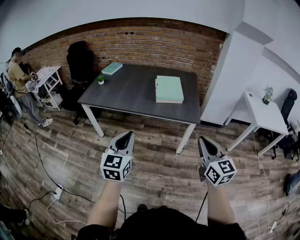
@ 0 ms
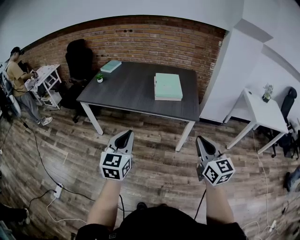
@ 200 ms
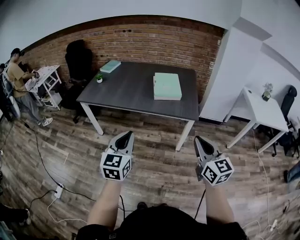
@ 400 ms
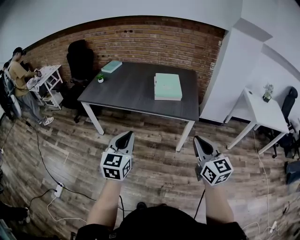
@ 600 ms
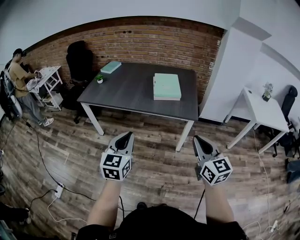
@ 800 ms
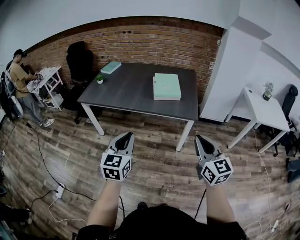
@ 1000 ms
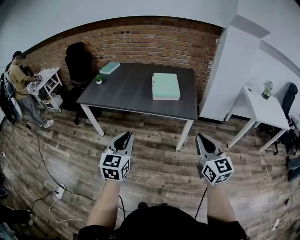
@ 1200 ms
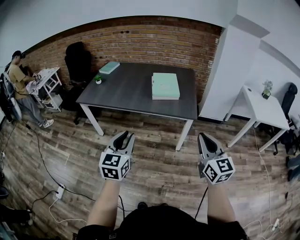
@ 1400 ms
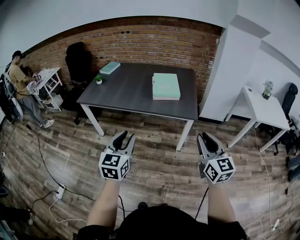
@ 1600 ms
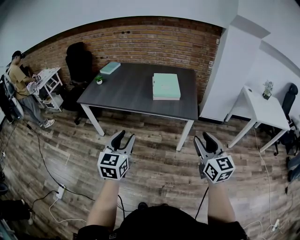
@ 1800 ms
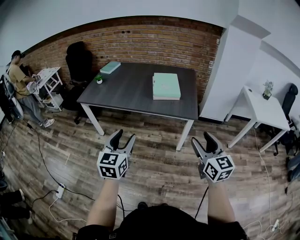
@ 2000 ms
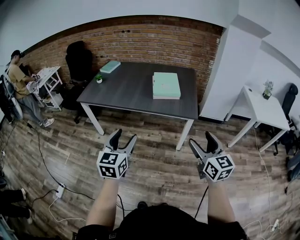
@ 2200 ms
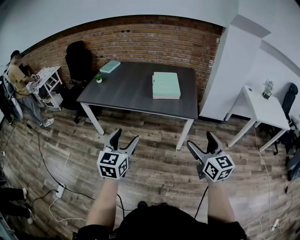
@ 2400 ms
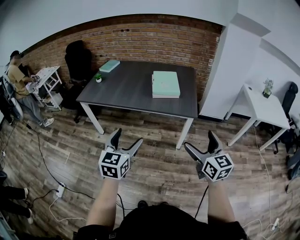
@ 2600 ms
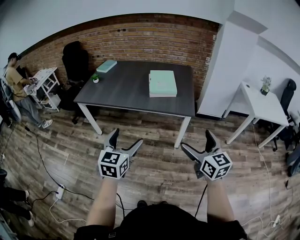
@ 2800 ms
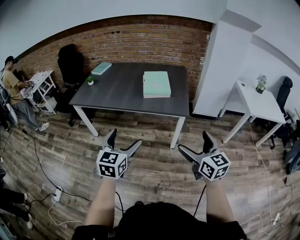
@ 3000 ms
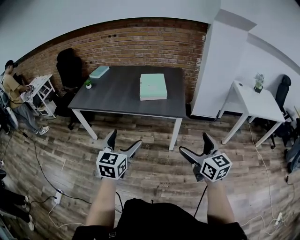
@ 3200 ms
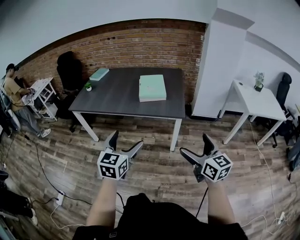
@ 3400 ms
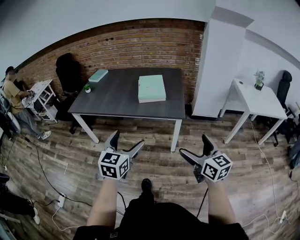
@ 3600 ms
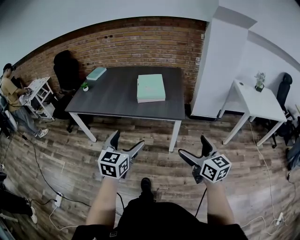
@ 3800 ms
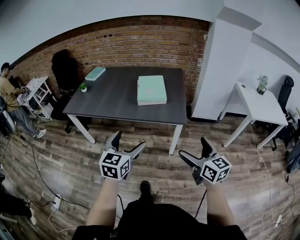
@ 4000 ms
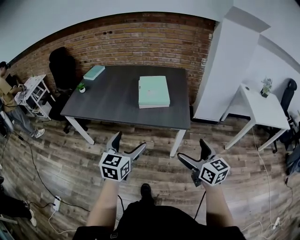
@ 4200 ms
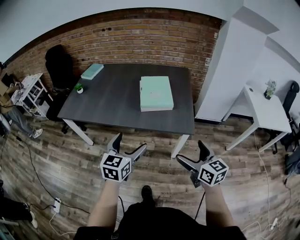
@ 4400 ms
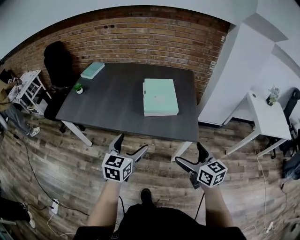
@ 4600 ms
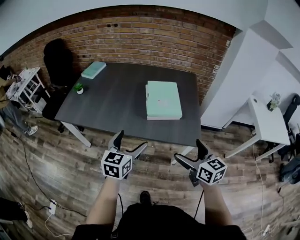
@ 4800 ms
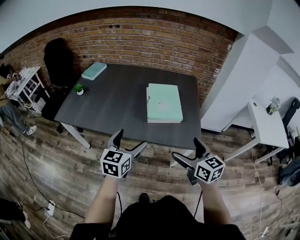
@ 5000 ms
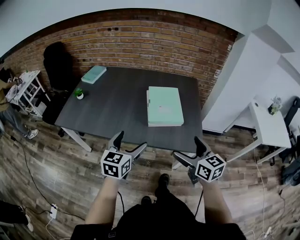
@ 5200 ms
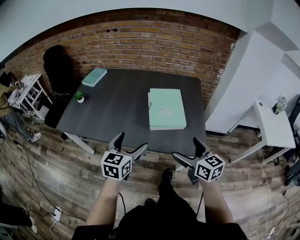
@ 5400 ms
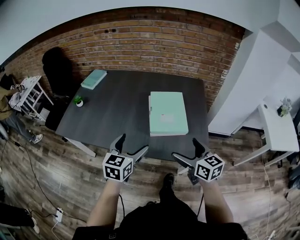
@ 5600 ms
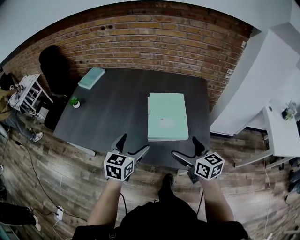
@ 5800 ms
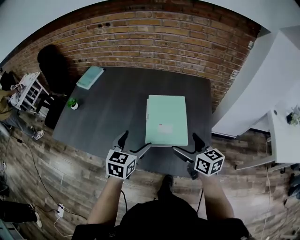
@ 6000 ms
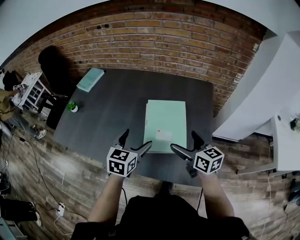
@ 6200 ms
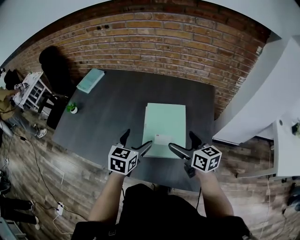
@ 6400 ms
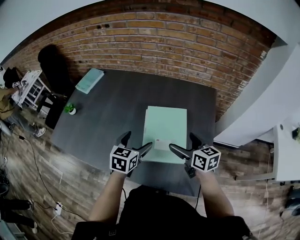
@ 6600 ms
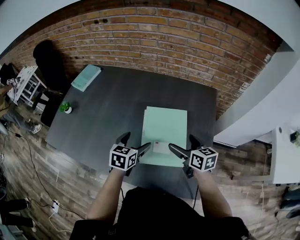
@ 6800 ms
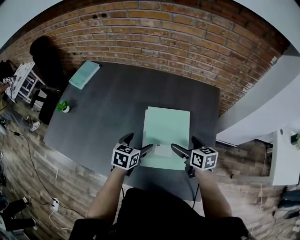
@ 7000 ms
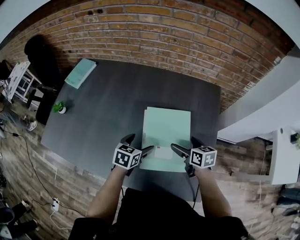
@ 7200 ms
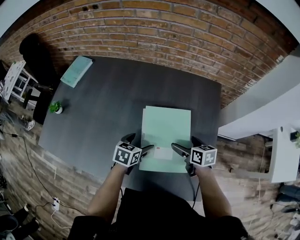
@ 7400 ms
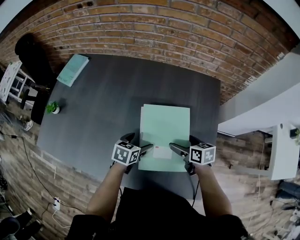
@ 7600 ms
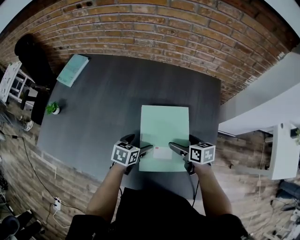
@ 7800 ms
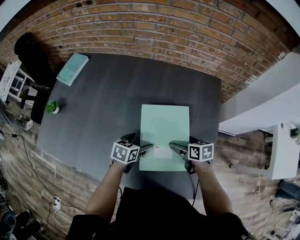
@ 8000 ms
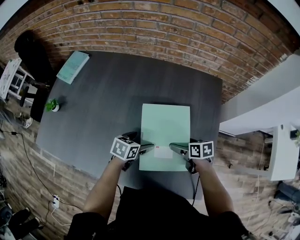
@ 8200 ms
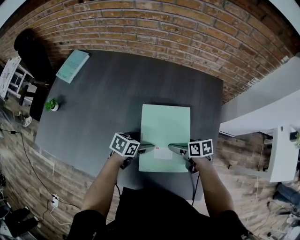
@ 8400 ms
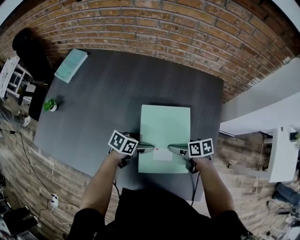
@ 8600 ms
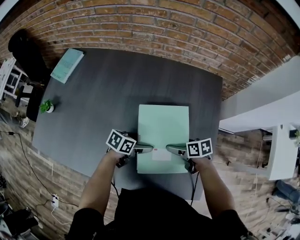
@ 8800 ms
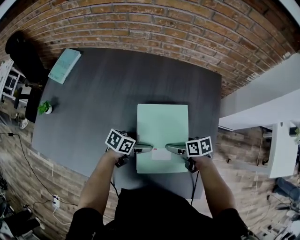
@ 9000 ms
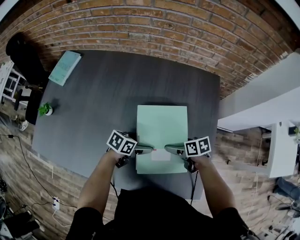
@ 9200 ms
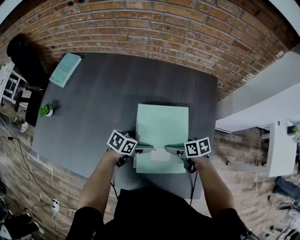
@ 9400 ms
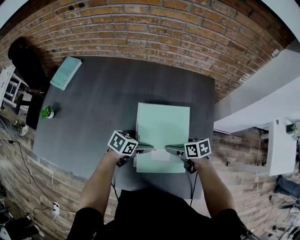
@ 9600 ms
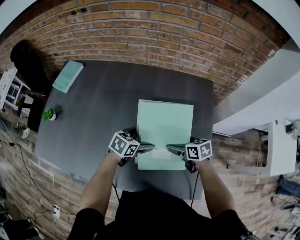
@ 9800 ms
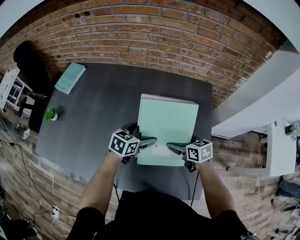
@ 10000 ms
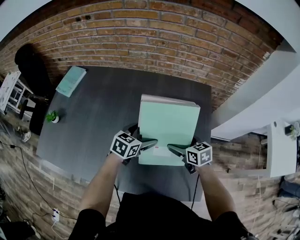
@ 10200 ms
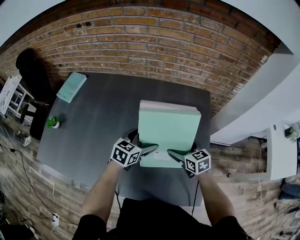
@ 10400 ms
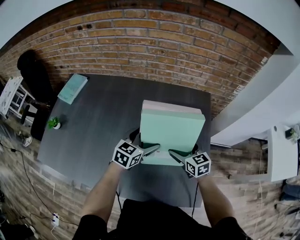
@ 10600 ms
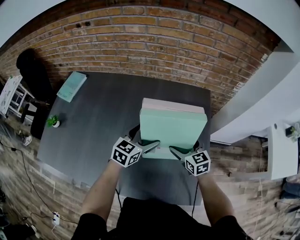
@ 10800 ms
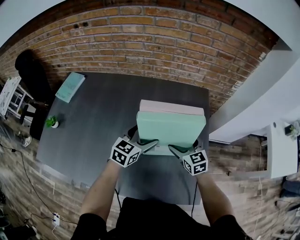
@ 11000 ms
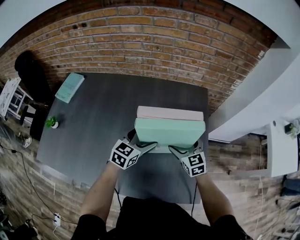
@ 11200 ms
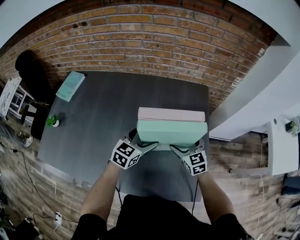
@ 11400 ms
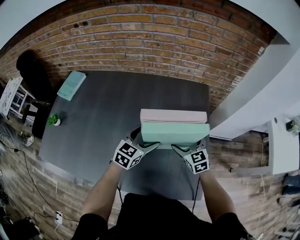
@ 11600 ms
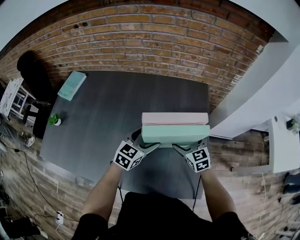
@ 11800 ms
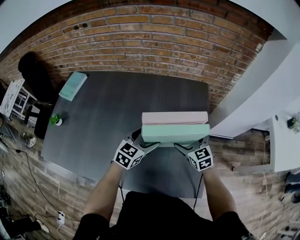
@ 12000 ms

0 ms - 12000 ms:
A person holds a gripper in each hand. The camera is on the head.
0 ms - 1600 ms: The grippers stay close to where they were, moving slightly.
1600 ms - 3000 ms: The right gripper opens up. The left gripper opens up.
3000 ms - 4400 ms: The left gripper heads forward, covering approximately 20 cm. Meanwhile the right gripper moves forward and downward, about 20 cm.
4400 ms - 6000 ms: Both grippers travel together forward, roughly 35 cm.
6000 ms - 7600 ms: The grippers both shift downward and forward by approximately 25 cm. The right gripper swivels about 30 degrees. Meanwhile the left gripper changes its angle by some 30 degrees.
7600 ms - 9000 ms: The left gripper rotates approximately 30 degrees, while the right gripper travels downward by about 5 cm.
9000 ms - 10400 ms: The two grippers go roughly 10 cm upward. The left gripper swivels some 40 degrees, while the right gripper rotates some 40 degrees.
10400 ms - 12000 ms: The left gripper ends up approximately 5 cm from where it was.

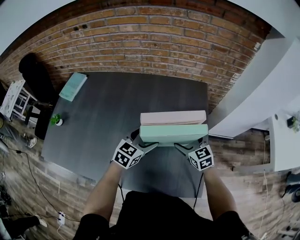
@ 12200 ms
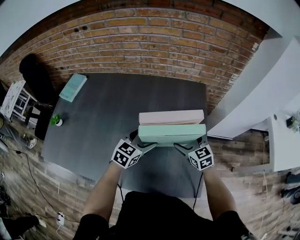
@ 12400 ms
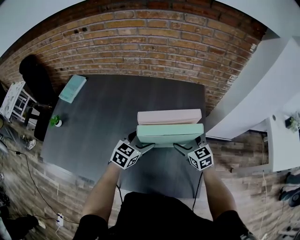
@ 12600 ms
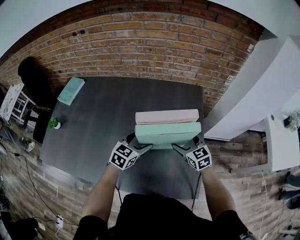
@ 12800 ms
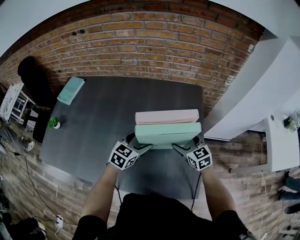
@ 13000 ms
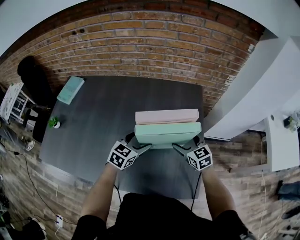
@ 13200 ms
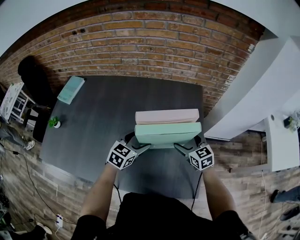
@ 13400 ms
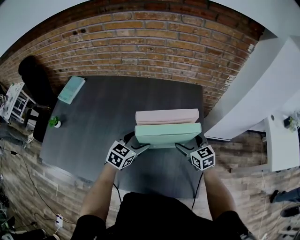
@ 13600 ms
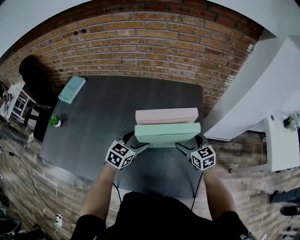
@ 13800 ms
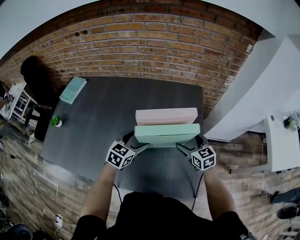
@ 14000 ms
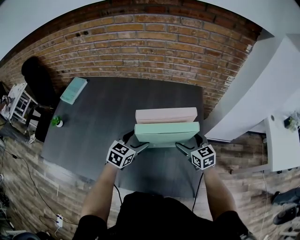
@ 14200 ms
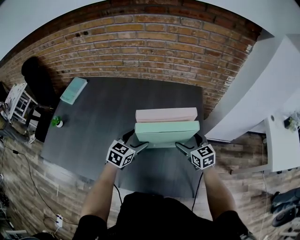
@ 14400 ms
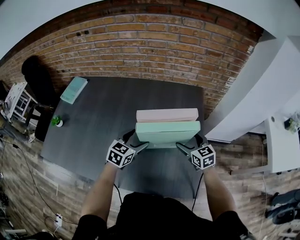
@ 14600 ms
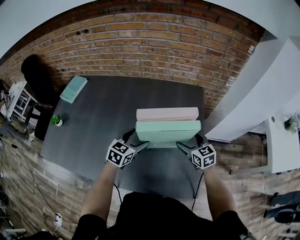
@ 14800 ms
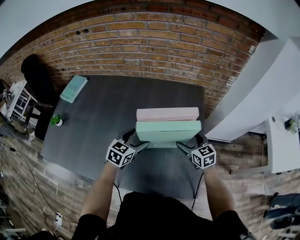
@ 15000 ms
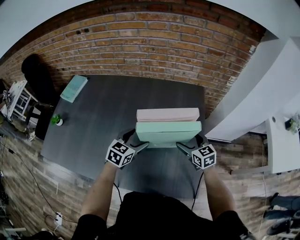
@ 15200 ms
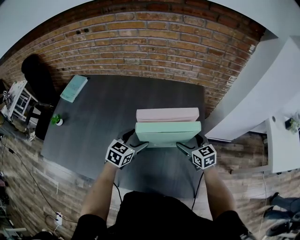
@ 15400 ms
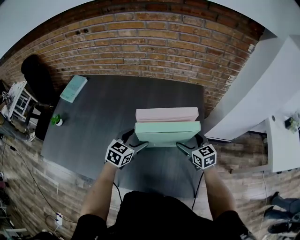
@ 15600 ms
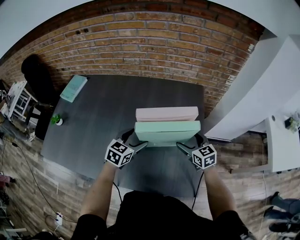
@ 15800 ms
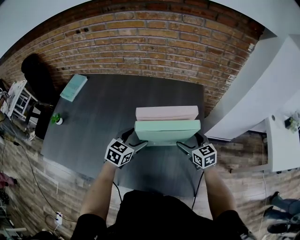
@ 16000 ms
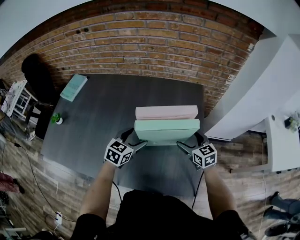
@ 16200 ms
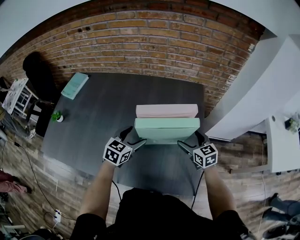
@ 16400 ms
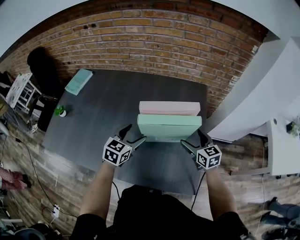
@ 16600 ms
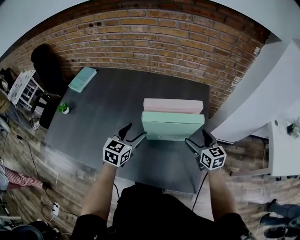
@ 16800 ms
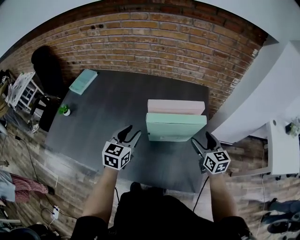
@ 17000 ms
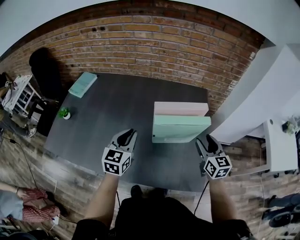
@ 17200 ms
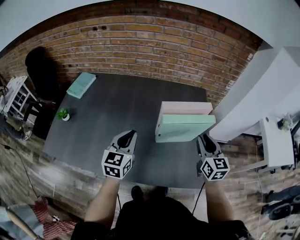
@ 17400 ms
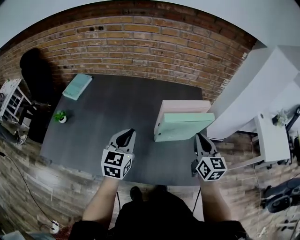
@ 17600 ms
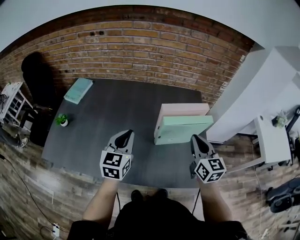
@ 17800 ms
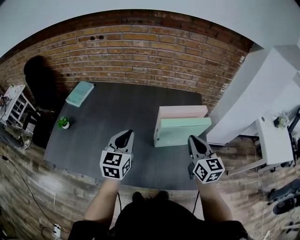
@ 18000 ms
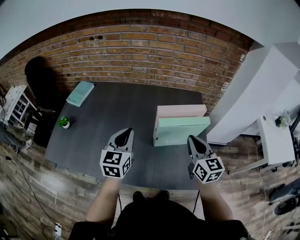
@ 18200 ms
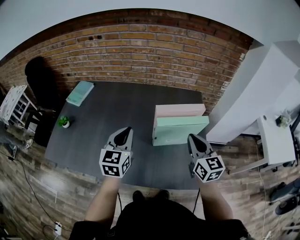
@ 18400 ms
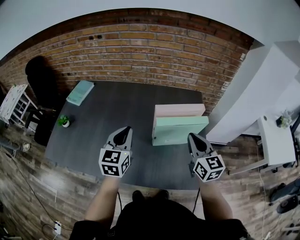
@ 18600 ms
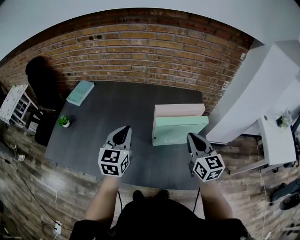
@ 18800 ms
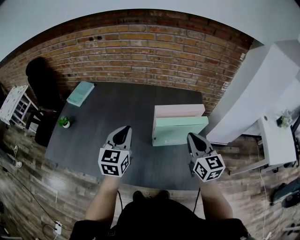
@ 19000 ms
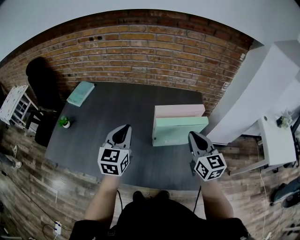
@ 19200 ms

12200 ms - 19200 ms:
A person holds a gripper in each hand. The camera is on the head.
12200 ms - 13600 ms: The grippers make only small movements.
13600 ms - 15000 ms: Neither gripper changes place.
15000 ms - 16400 ms: The grippers stay close to where they were, moving slightly.
16400 ms - 17800 ms: The right gripper heads upward, backward and to the left, covering roughly 20 cm, changes its angle by approximately 30 degrees, and closes. The left gripper moves upward, to the left and backward, roughly 20 cm, rotates some 20 degrees, and closes its fingers.
17800 ms - 19200 ms: There are only small adjustments of the grippers.

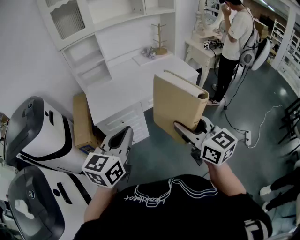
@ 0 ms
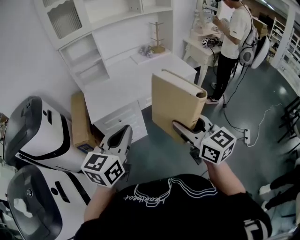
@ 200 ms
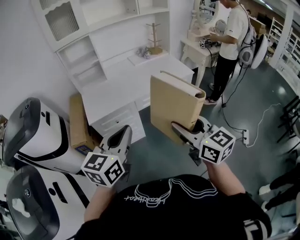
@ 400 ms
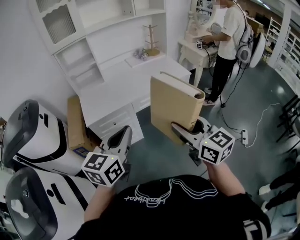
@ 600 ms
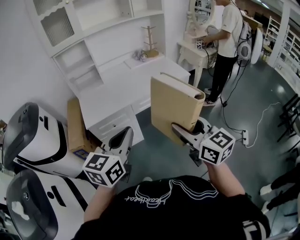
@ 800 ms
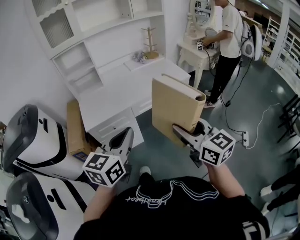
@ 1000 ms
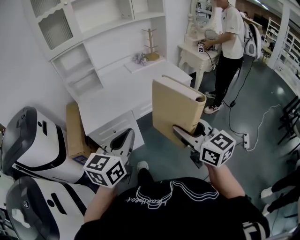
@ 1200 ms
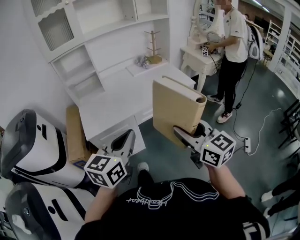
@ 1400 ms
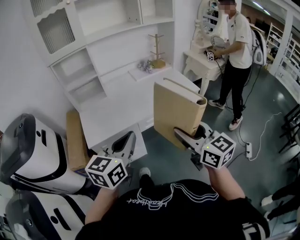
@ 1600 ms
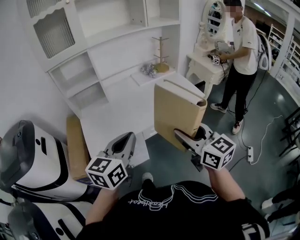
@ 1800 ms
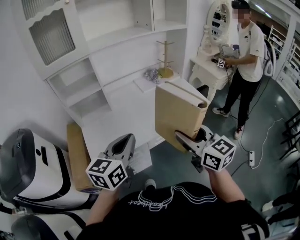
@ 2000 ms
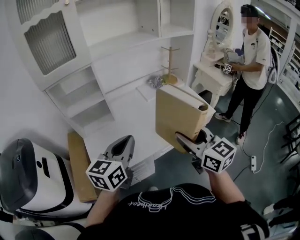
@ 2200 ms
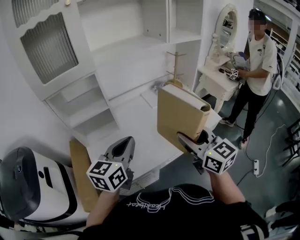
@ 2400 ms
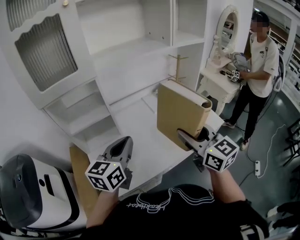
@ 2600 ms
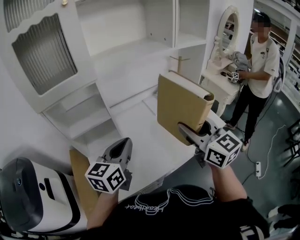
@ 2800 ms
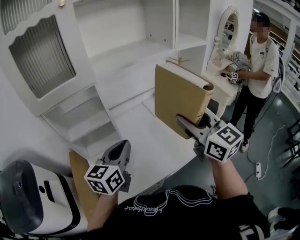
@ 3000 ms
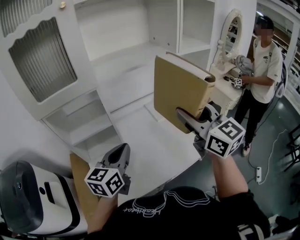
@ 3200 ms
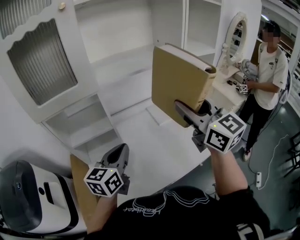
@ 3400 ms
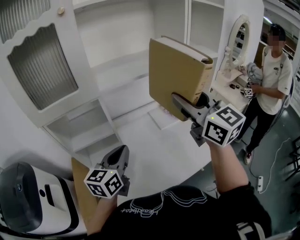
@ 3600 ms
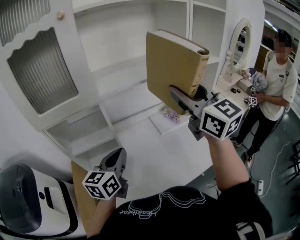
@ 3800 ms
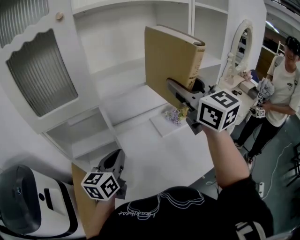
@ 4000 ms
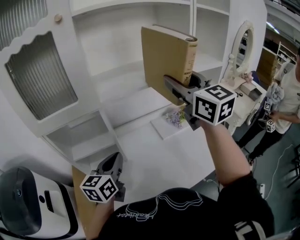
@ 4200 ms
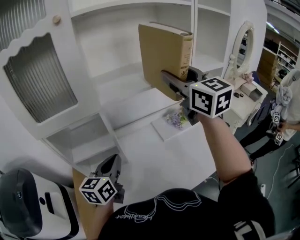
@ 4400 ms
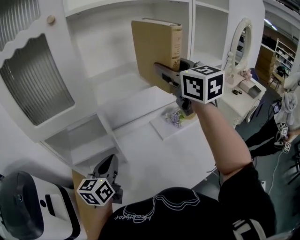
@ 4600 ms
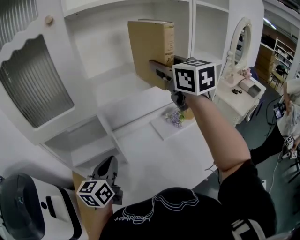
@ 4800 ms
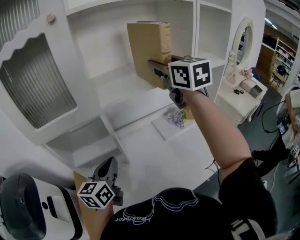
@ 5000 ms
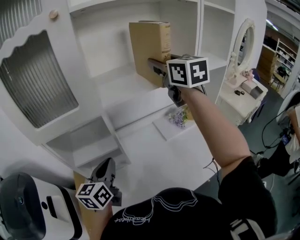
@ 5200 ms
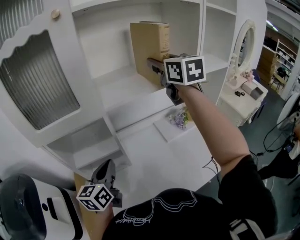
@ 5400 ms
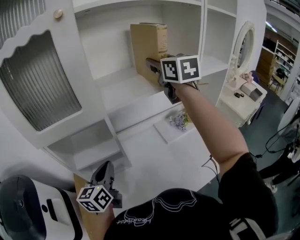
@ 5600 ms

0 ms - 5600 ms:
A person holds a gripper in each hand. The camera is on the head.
0 ms - 1400 ms: Both grippers travel together forward, approximately 10 cm.
1400 ms - 2800 ms: The pair of grippers is taken forward, about 40 cm.
2800 ms - 4200 ms: The left gripper is displaced forward by some 10 cm. Meanwhile the right gripper heads forward and upward, covering about 25 cm.
4200 ms - 5600 ms: The left gripper travels to the left by approximately 5 cm. The right gripper heads forward, covering about 15 cm.
